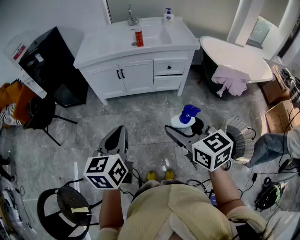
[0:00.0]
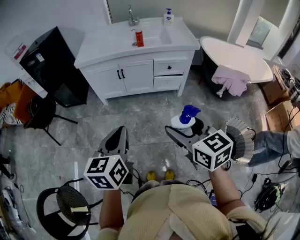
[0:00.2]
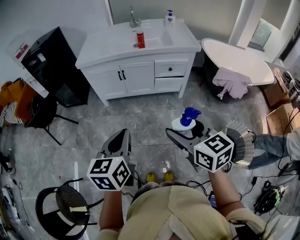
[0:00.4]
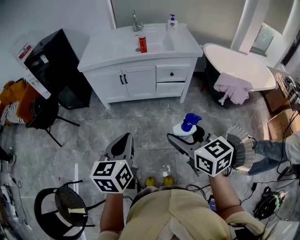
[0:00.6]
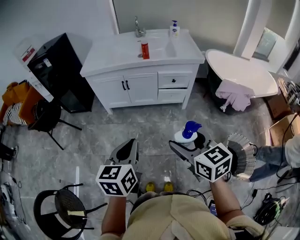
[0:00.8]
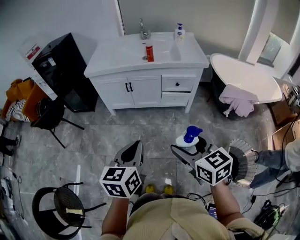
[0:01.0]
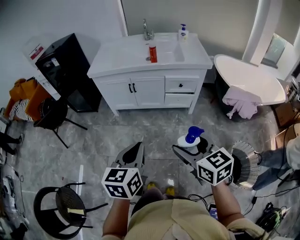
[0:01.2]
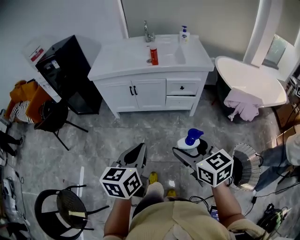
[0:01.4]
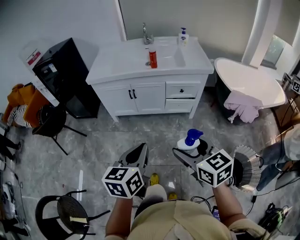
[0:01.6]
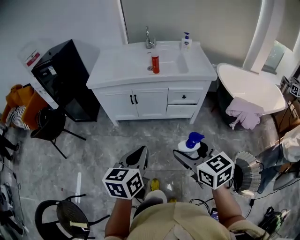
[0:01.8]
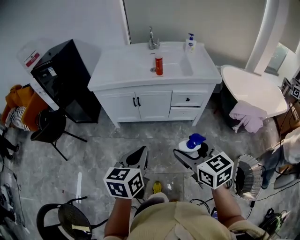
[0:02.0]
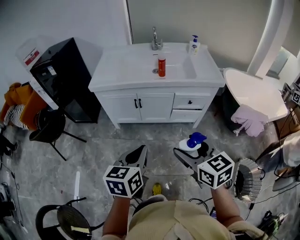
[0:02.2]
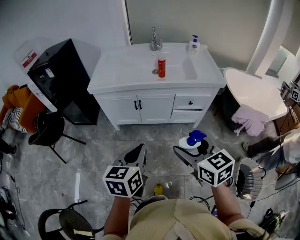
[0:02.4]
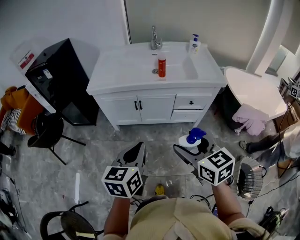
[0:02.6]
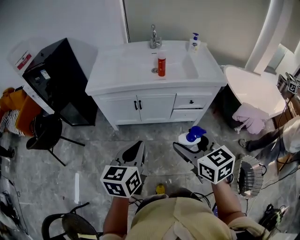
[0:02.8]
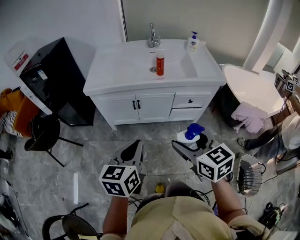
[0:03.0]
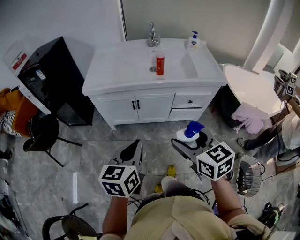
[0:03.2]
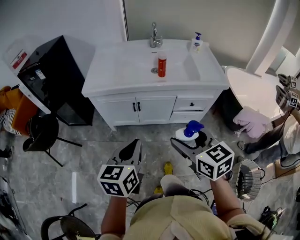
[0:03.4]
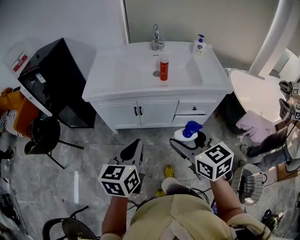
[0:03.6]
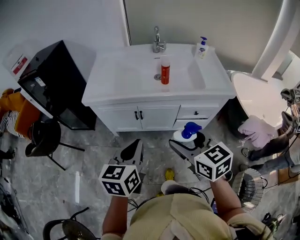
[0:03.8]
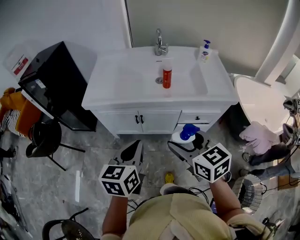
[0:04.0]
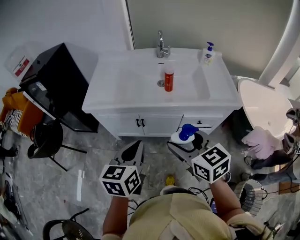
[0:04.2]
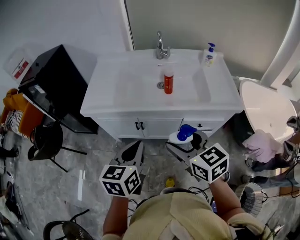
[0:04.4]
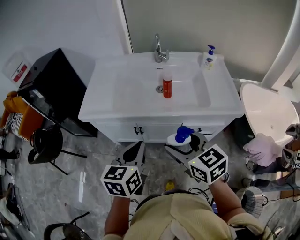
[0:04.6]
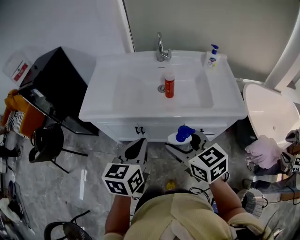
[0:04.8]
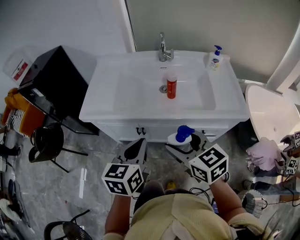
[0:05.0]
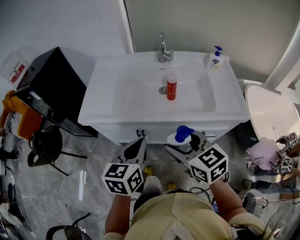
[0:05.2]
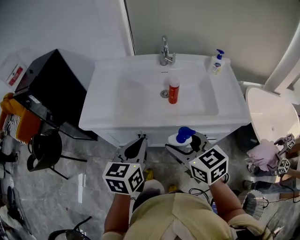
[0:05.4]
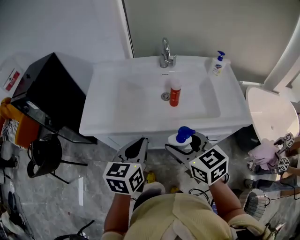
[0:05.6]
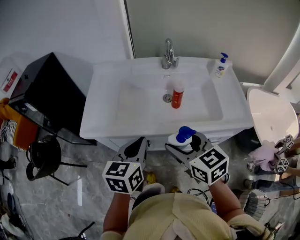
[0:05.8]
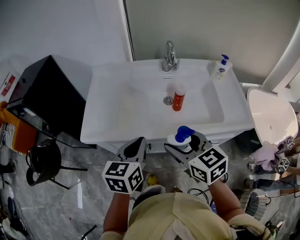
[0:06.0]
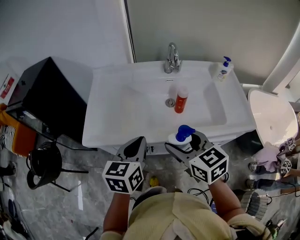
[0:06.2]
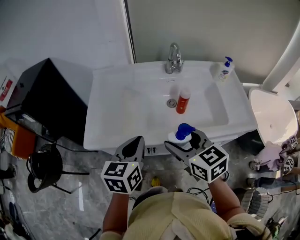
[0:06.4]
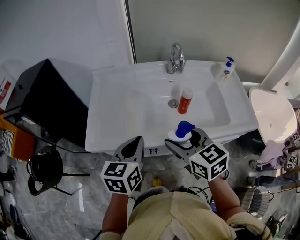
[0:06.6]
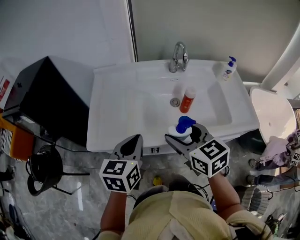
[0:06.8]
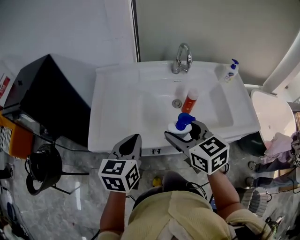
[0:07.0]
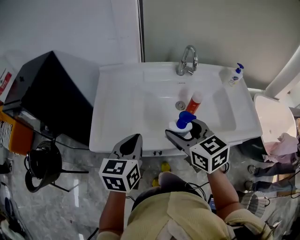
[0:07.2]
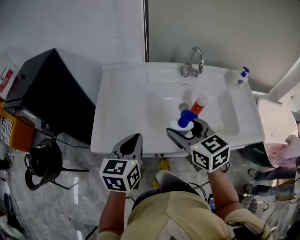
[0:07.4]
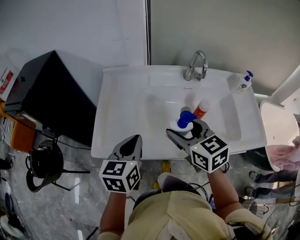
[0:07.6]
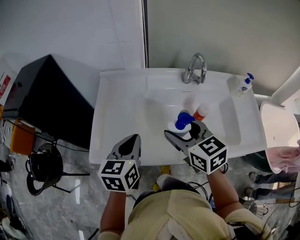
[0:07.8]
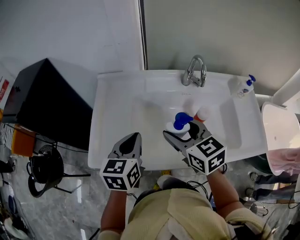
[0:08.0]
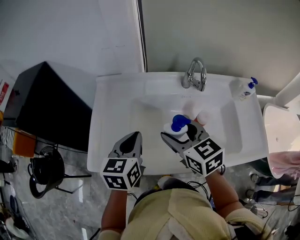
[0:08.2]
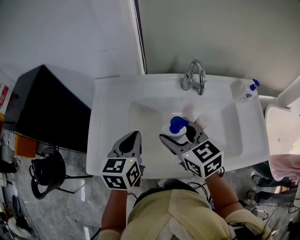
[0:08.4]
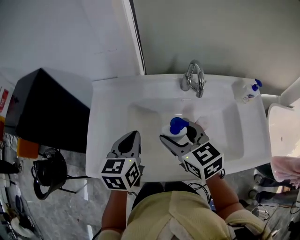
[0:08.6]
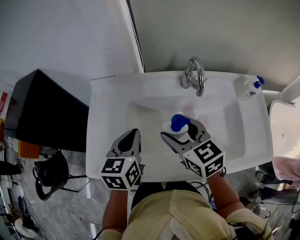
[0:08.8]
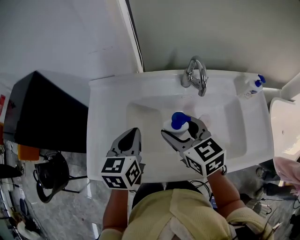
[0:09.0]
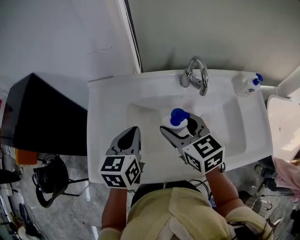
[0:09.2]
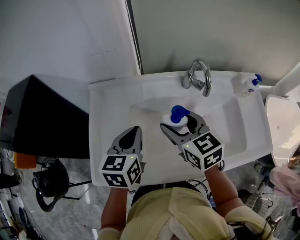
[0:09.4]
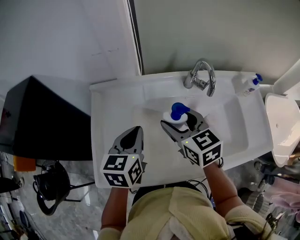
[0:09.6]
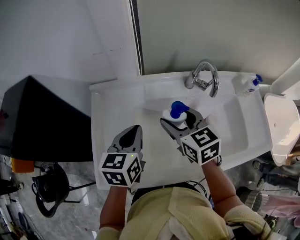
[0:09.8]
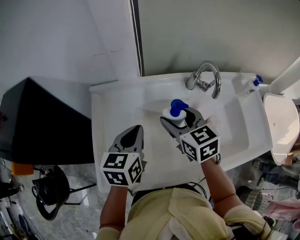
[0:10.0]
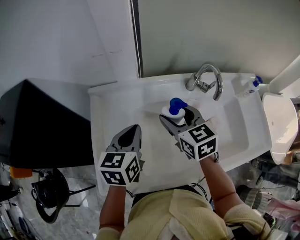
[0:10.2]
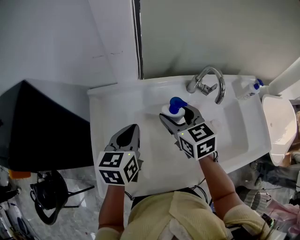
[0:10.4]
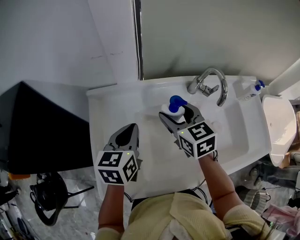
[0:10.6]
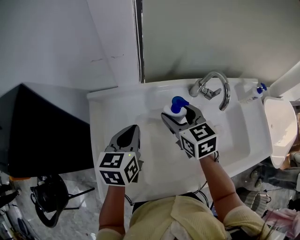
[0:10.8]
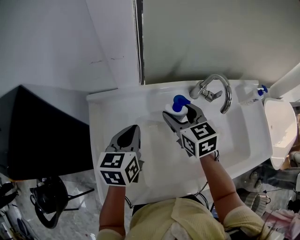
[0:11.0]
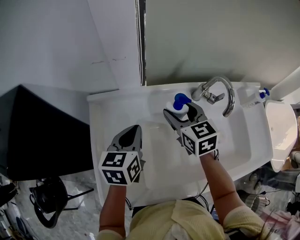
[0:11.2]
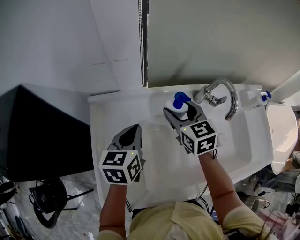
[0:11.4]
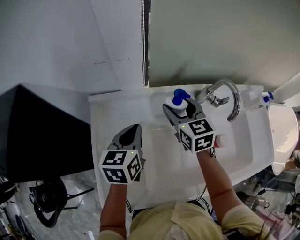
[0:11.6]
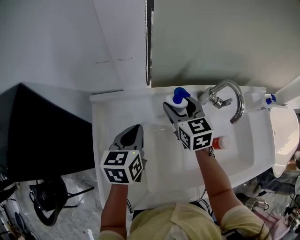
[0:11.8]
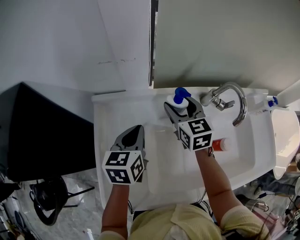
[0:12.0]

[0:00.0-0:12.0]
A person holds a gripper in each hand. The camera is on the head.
0:00.0 to 0:01.6: The left gripper shifts some 5 cm to the right. Meanwhile the right gripper heads forward, covering roughly 5 cm.
0:01.6 to 0:03.0: Both grippers move forward and to the left, about 20 cm.
0:03.0 to 0:04.4: Both grippers travel together forward, roughly 20 cm.
0:04.4 to 0:06.0: The two grippers go approximately 15 cm forward.
0:06.0 to 0:07.6: The two grippers go roughly 15 cm forward and to the left.
0:07.6 to 0:09.0: Both grippers move forward and to the right, approximately 15 cm.
0:09.0 to 0:10.4: Both grippers travel together forward and to the left, approximately 10 cm.
0:10.4 to 0:12.0: The left gripper shifts roughly 5 cm forward. Meanwhile the right gripper travels forward by roughly 10 cm.

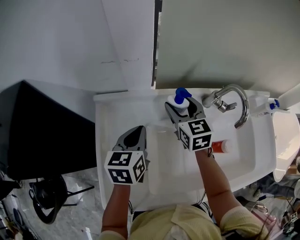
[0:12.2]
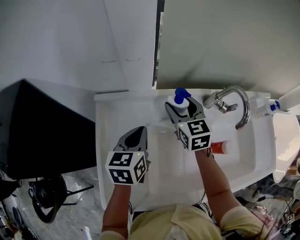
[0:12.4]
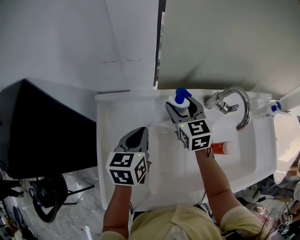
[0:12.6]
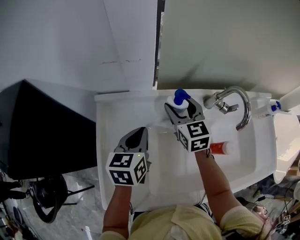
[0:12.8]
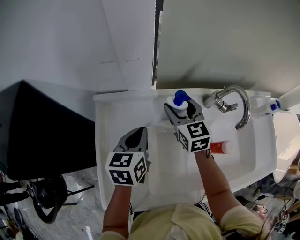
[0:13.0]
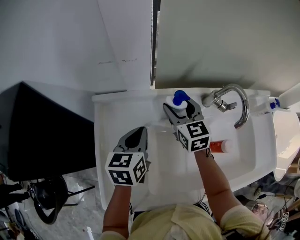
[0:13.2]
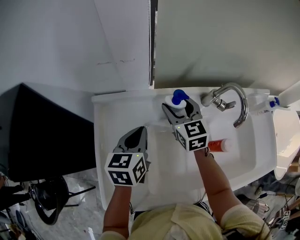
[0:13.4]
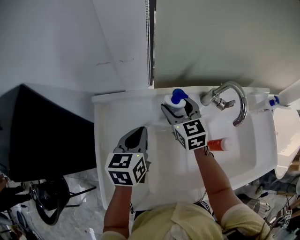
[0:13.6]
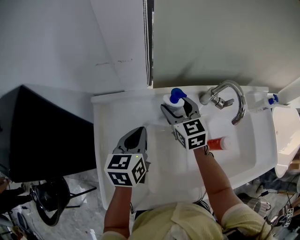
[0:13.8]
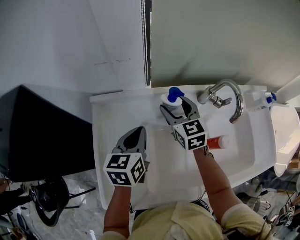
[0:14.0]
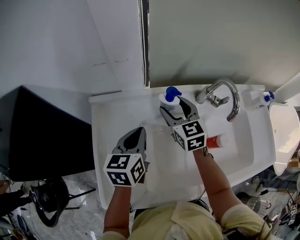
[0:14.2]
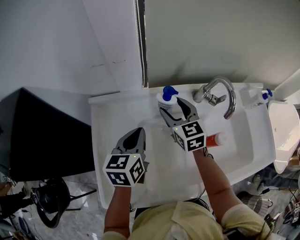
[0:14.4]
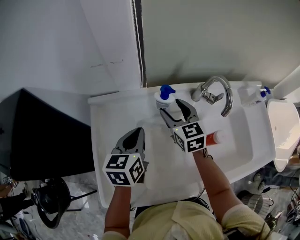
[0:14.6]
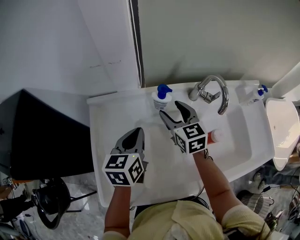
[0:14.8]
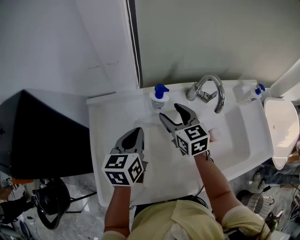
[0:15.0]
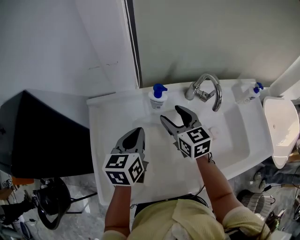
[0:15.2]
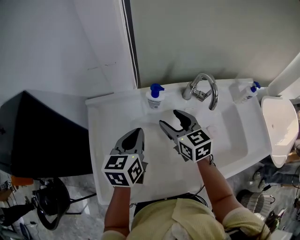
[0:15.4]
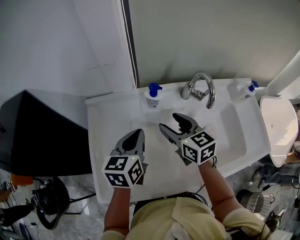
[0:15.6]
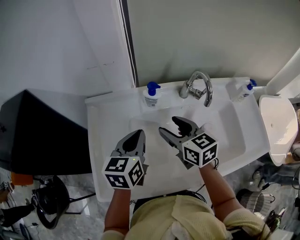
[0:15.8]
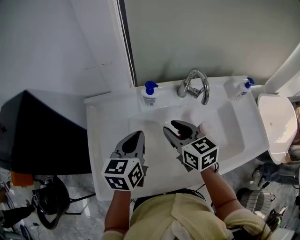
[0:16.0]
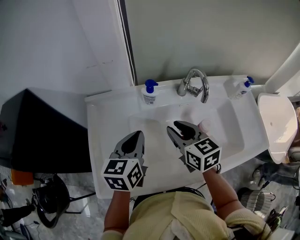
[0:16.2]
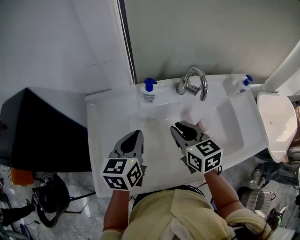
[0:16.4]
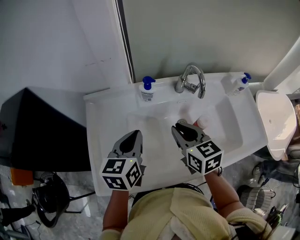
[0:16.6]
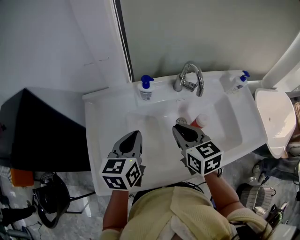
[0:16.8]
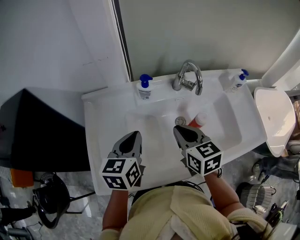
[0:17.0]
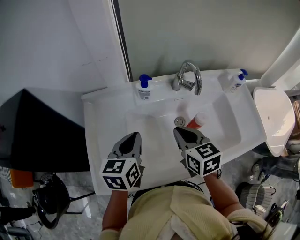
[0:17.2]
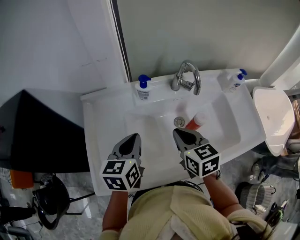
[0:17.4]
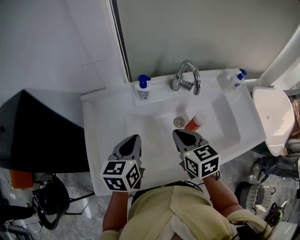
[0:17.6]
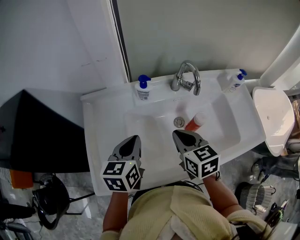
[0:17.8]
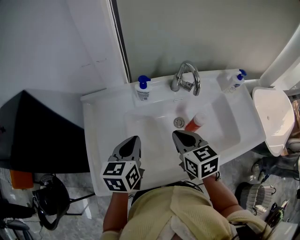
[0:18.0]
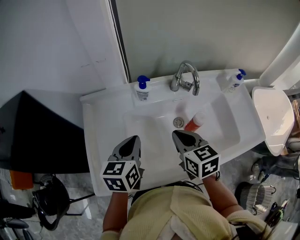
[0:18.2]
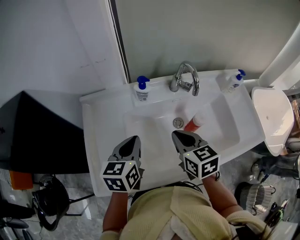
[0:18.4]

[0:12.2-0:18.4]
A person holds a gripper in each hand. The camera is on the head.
0:12.2 to 0:13.8: The grippers move only a little.
0:13.8 to 0:15.4: The right gripper moves backward, roughly 10 cm; the left gripper shifts by about 5 cm.
0:15.4 to 0:16.8: The right gripper heads backward, covering some 10 cm, and closes. The left gripper goes about 5 cm backward.
0:16.8 to 0:18.4: The grippers stay close to where they were, moving slightly.

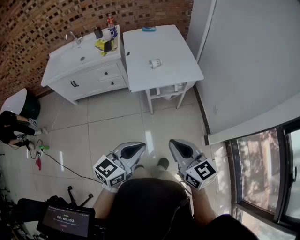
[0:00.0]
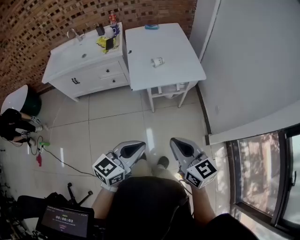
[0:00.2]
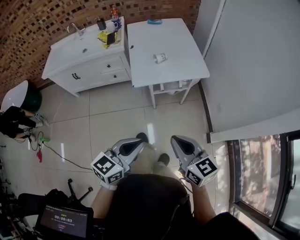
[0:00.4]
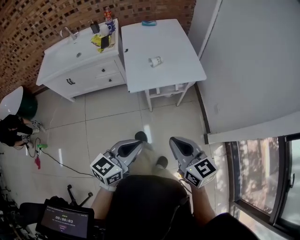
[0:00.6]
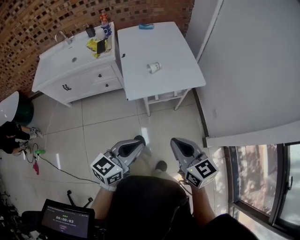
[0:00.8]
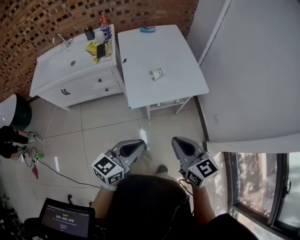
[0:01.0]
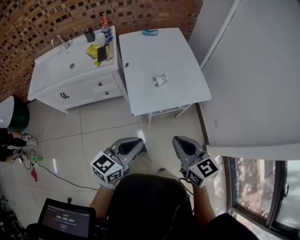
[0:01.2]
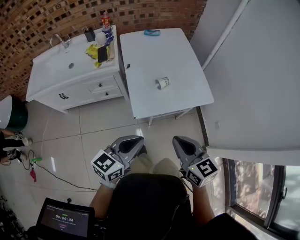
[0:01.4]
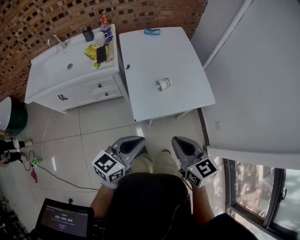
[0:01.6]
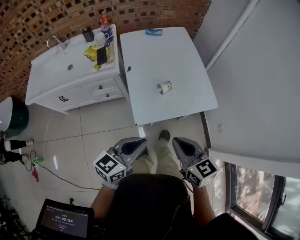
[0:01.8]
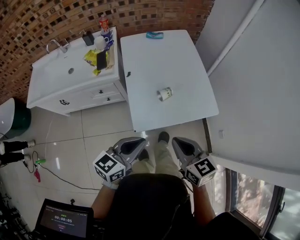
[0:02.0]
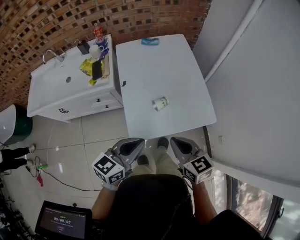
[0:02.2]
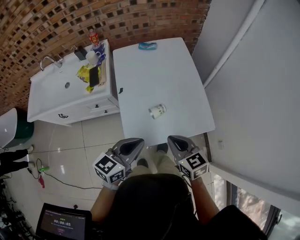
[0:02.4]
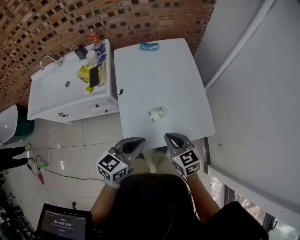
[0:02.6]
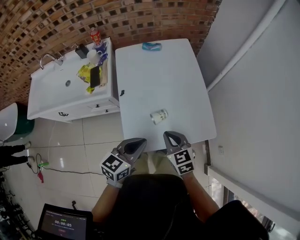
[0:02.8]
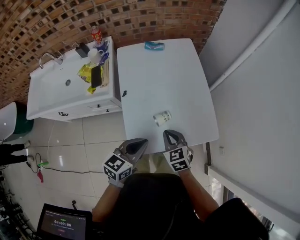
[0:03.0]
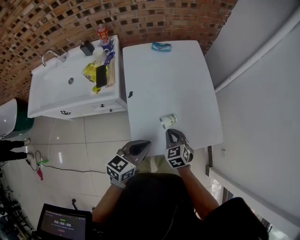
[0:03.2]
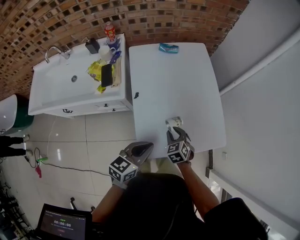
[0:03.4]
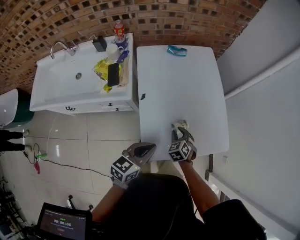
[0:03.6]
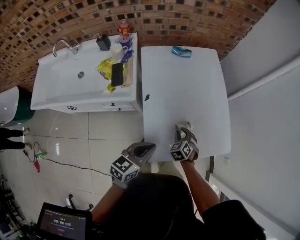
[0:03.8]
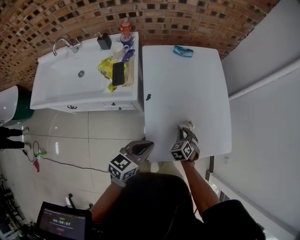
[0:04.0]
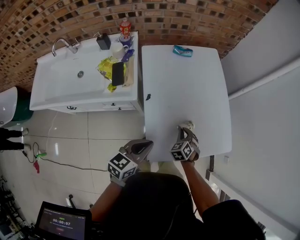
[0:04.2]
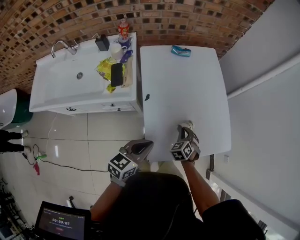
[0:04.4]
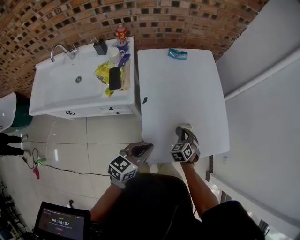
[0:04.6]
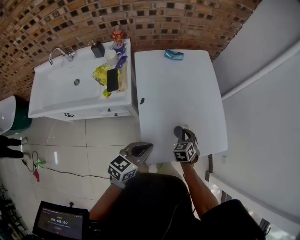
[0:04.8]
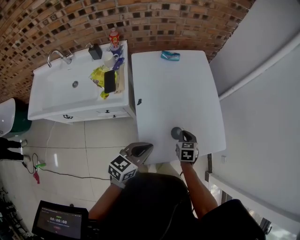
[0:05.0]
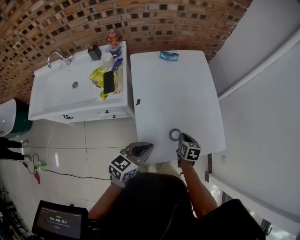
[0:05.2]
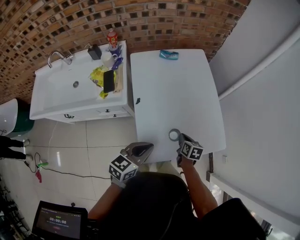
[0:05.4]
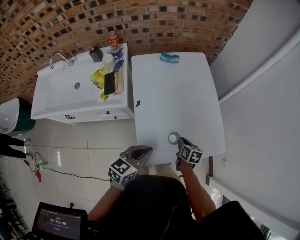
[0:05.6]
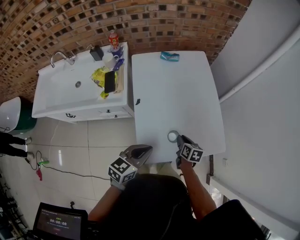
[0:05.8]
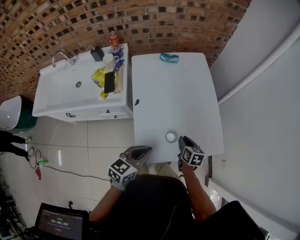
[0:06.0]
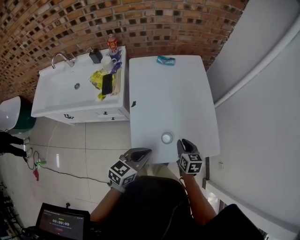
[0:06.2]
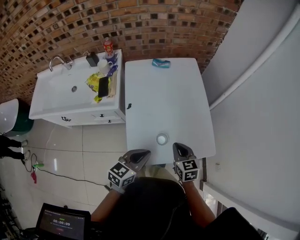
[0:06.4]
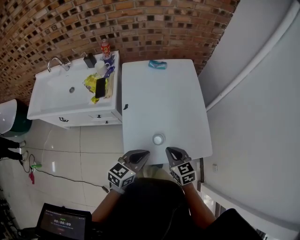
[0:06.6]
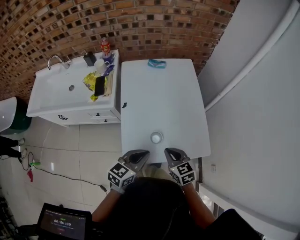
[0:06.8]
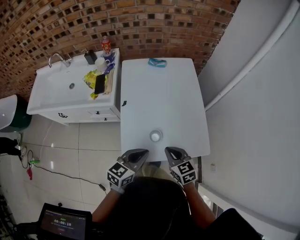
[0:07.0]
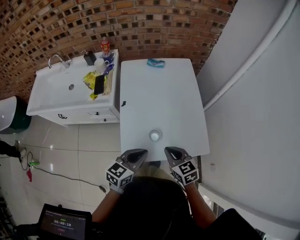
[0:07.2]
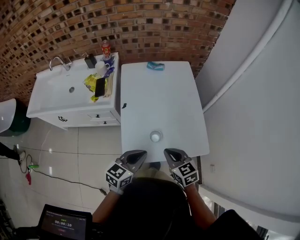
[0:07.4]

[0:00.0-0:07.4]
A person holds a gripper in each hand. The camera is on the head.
0:00.0 to 0:01.4: The right gripper heads forward, covering some 25 cm. Meanwhile the left gripper travels forward and to the left by approximately 30 cm.
0:01.4 to 0:03.0: The left gripper is displaced forward by approximately 25 cm, while the right gripper travels forward and downward by roughly 35 cm, and swivels roughly 20 degrees.
0:03.0 to 0:04.4: The left gripper moves to the left, some 10 cm. The right gripper shifts about 15 cm downward, forward and to the left, and swivels some 30 degrees.
0:04.4 to 0:06.0: The two grippers go some 10 cm to the right. The right gripper rotates around the line of its fingers by approximately 50 degrees, clockwise from behind.
0:06.0 to 0:07.4: The left gripper moves to the right, about 5 cm, while the right gripper heads upward and backward, covering about 15 cm, and rotates approximately 40 degrees.
